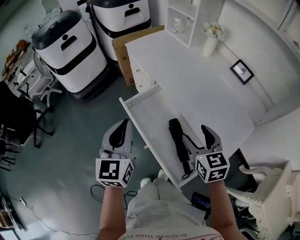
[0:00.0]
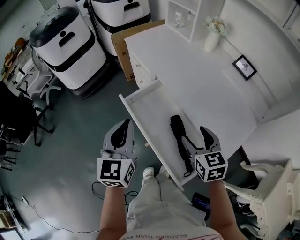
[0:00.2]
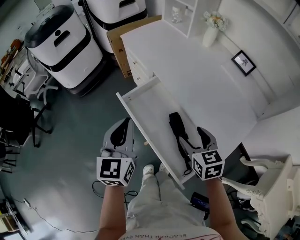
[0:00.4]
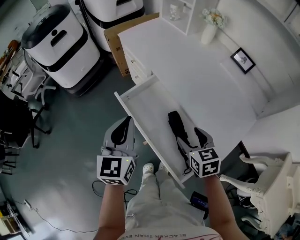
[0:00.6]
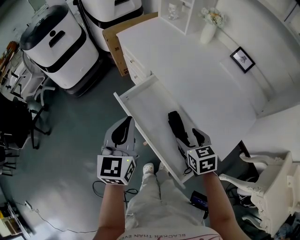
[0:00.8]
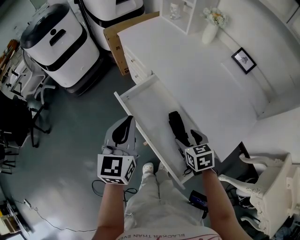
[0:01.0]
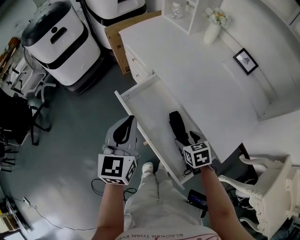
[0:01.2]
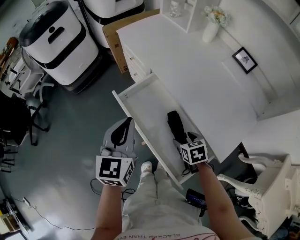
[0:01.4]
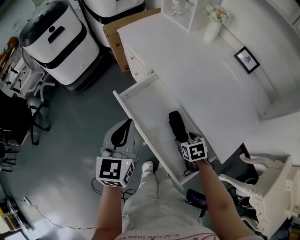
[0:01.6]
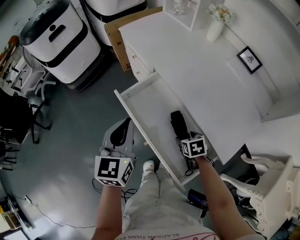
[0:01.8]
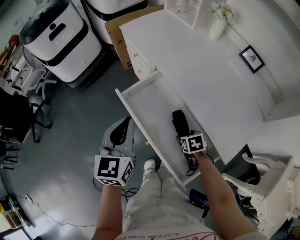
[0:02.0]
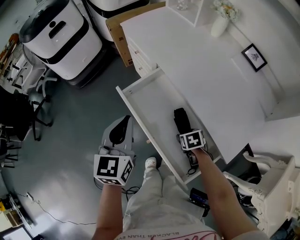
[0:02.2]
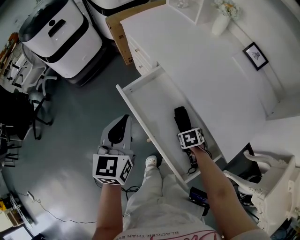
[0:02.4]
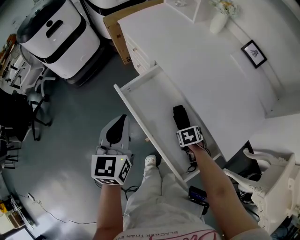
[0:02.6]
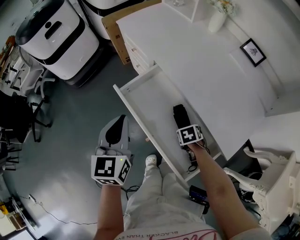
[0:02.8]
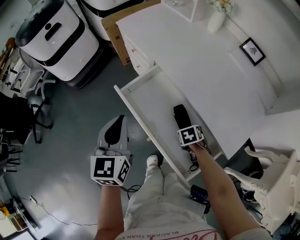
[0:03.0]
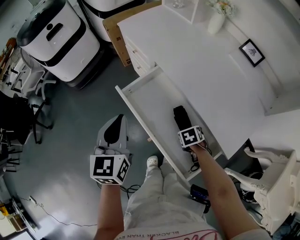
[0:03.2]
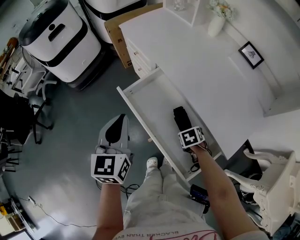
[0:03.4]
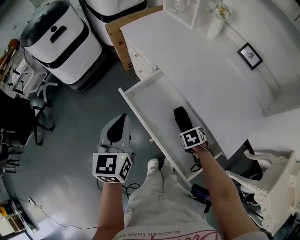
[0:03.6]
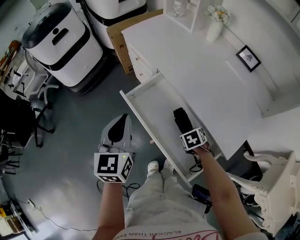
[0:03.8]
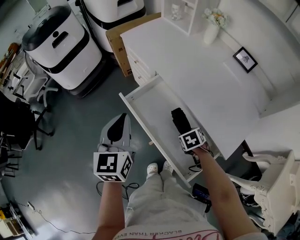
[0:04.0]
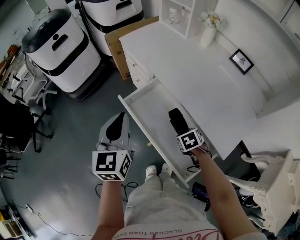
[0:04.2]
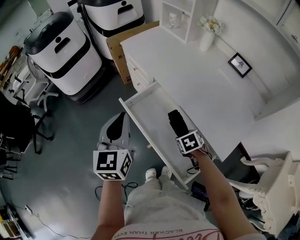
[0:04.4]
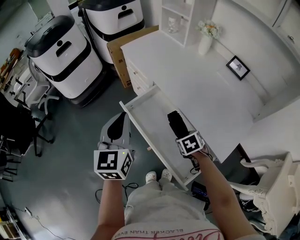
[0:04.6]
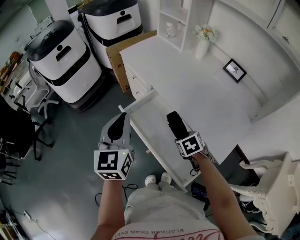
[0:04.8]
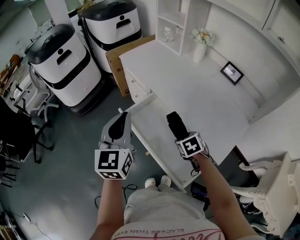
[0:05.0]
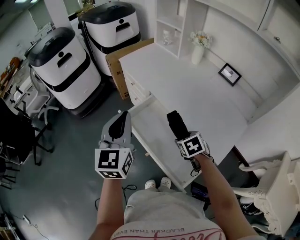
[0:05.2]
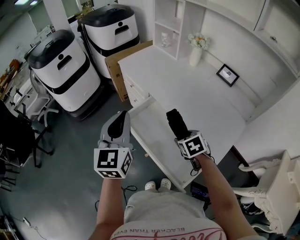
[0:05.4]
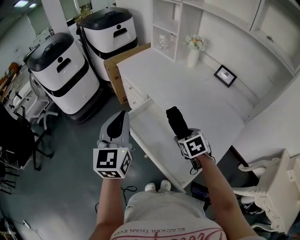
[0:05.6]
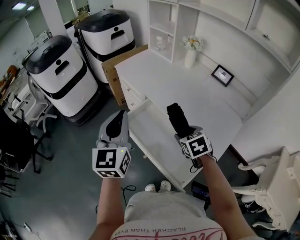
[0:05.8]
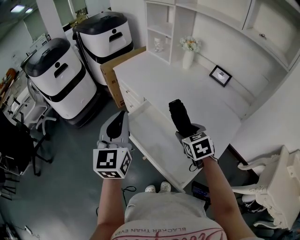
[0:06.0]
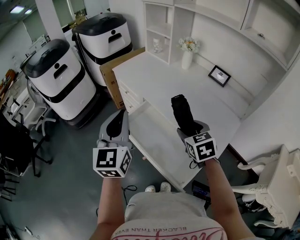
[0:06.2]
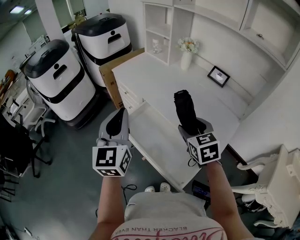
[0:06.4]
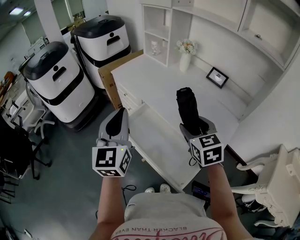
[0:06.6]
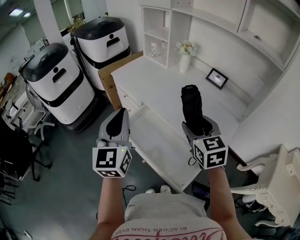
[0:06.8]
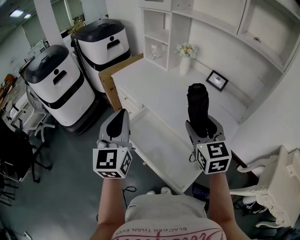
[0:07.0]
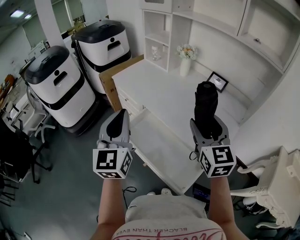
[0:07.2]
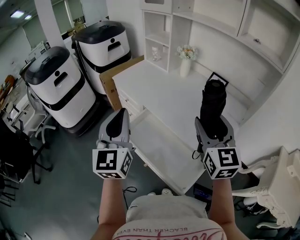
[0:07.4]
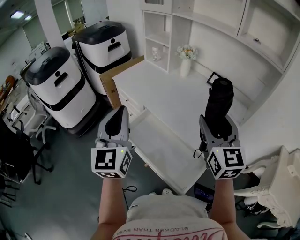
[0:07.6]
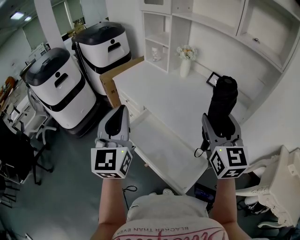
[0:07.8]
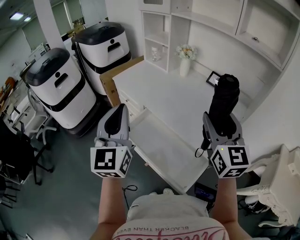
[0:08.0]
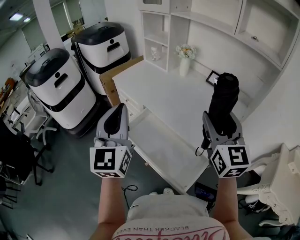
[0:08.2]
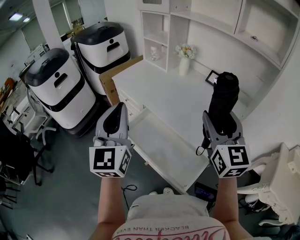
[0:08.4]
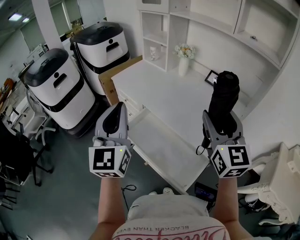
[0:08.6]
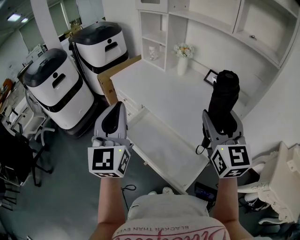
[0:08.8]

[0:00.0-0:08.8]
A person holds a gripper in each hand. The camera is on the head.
0:00.0 to 0:01.4: The right gripper shifts approximately 20 cm downward, and turns by roughly 30 degrees. The left gripper changes place by about 5 cm.
0:01.4 to 0:03.0: The right gripper goes some 10 cm downward.
0:03.0 to 0:04.4: The grippers both shift upward by approximately 10 cm.
0:04.4 to 0:05.8: The right gripper moves upward, about 15 cm, and rotates roughly 20 degrees; the left gripper shifts about 10 cm upward.
0:05.8 to 0:07.4: The right gripper moves upward, approximately 25 cm, and tilts its fingers about 40 degrees upward.
0:07.4 to 0:08.8: The grippers stay close to where they were, moving slightly.

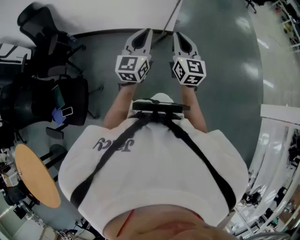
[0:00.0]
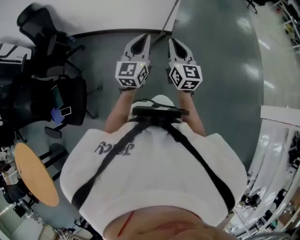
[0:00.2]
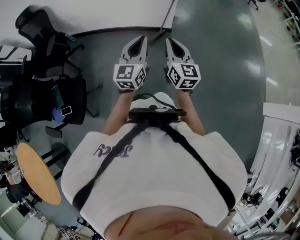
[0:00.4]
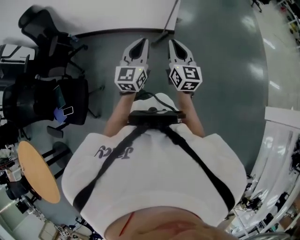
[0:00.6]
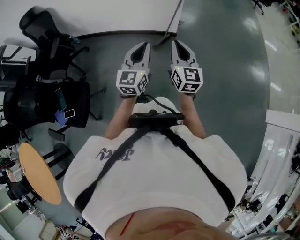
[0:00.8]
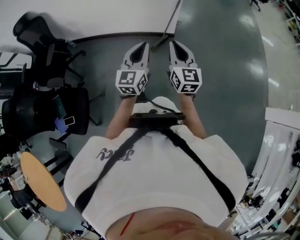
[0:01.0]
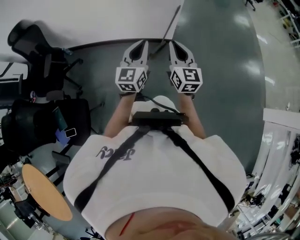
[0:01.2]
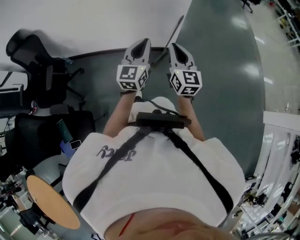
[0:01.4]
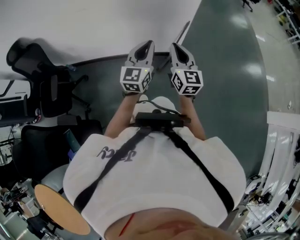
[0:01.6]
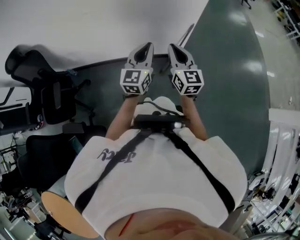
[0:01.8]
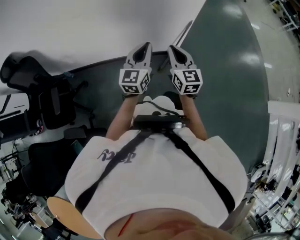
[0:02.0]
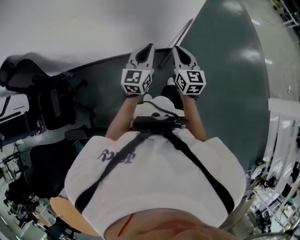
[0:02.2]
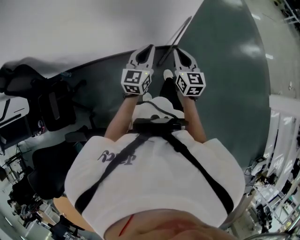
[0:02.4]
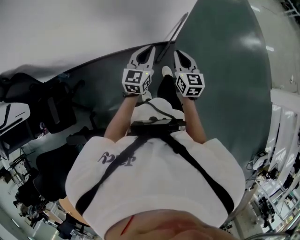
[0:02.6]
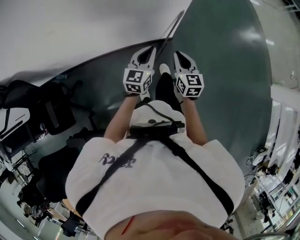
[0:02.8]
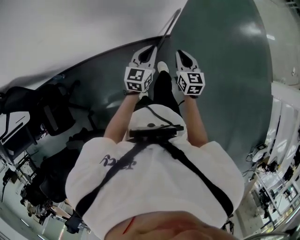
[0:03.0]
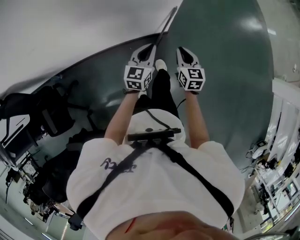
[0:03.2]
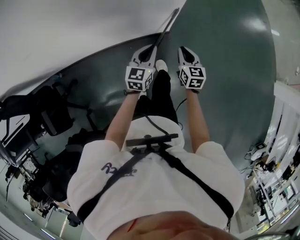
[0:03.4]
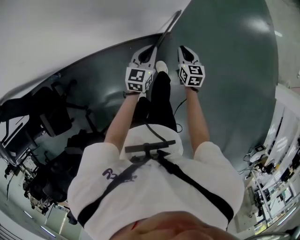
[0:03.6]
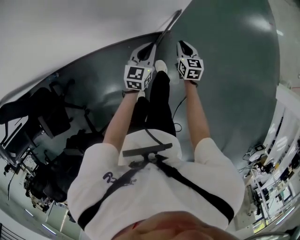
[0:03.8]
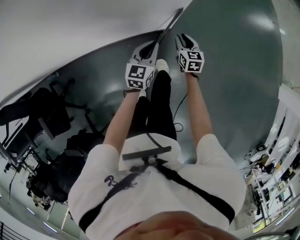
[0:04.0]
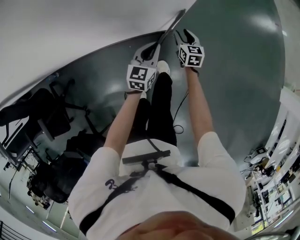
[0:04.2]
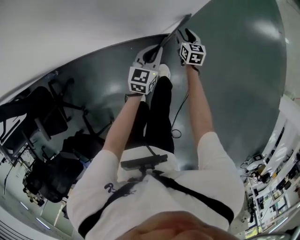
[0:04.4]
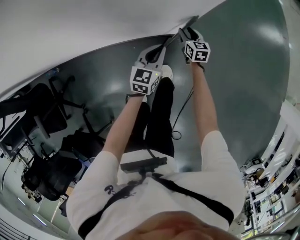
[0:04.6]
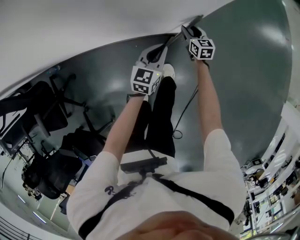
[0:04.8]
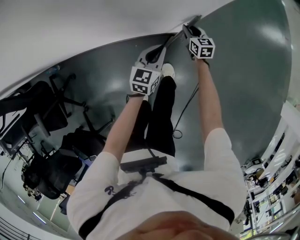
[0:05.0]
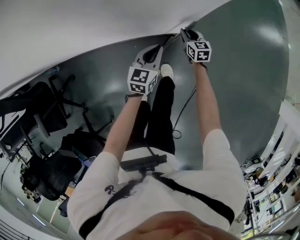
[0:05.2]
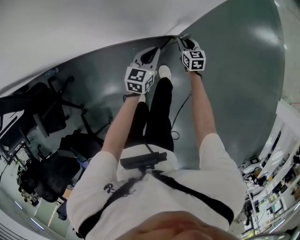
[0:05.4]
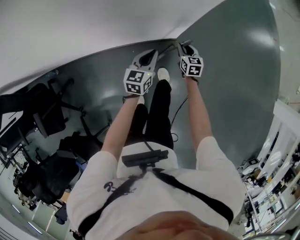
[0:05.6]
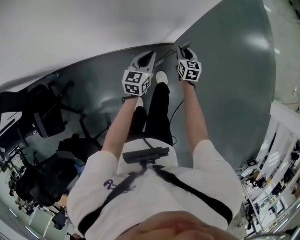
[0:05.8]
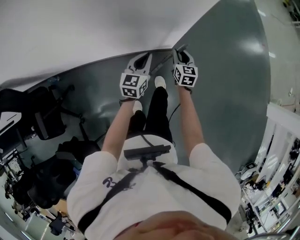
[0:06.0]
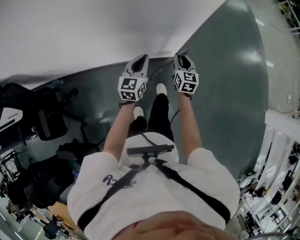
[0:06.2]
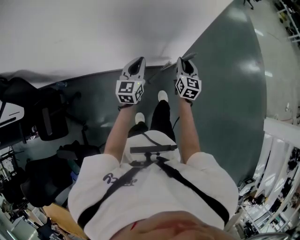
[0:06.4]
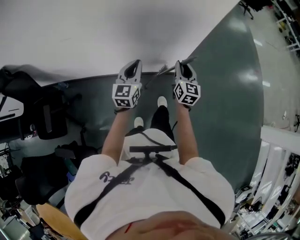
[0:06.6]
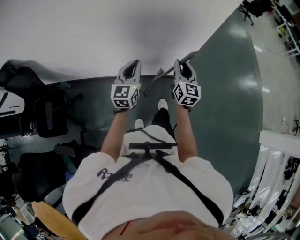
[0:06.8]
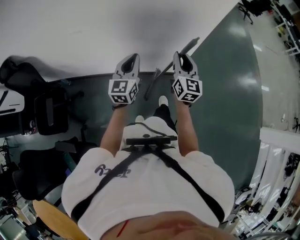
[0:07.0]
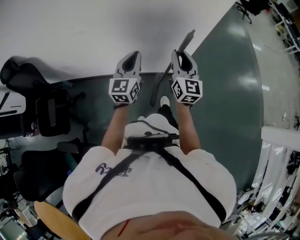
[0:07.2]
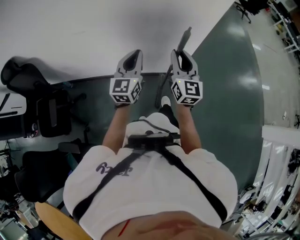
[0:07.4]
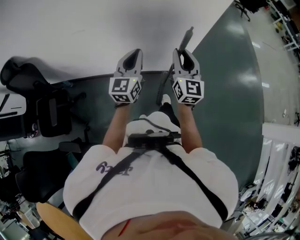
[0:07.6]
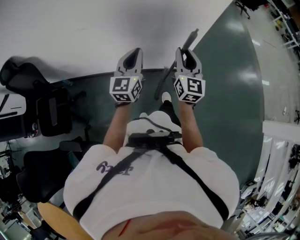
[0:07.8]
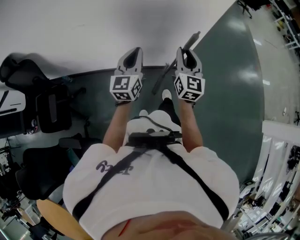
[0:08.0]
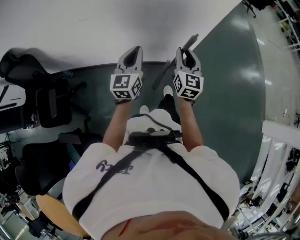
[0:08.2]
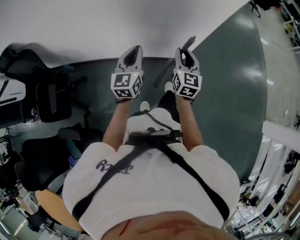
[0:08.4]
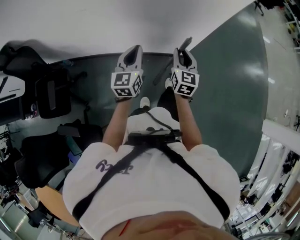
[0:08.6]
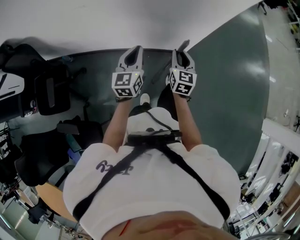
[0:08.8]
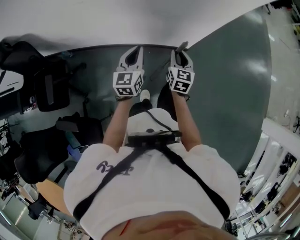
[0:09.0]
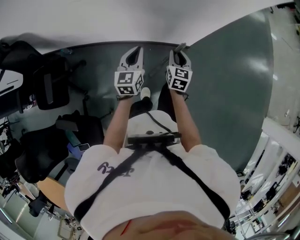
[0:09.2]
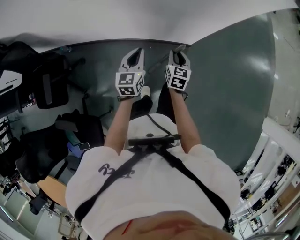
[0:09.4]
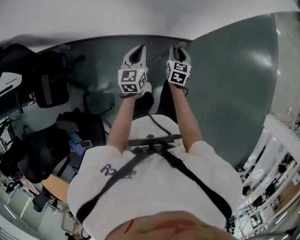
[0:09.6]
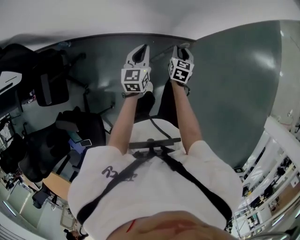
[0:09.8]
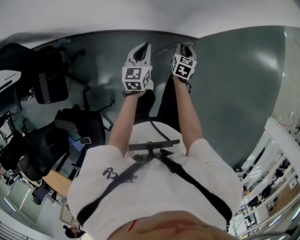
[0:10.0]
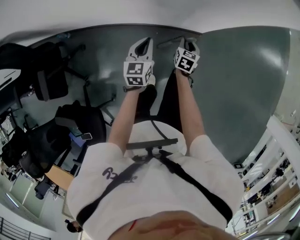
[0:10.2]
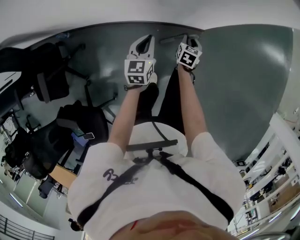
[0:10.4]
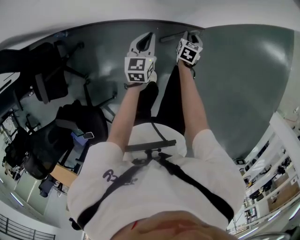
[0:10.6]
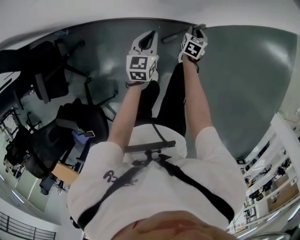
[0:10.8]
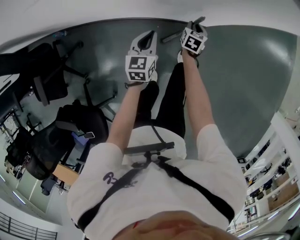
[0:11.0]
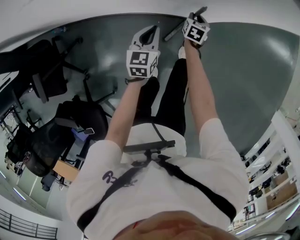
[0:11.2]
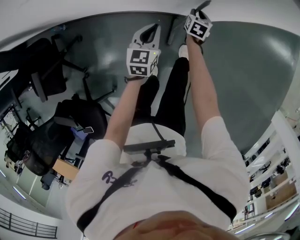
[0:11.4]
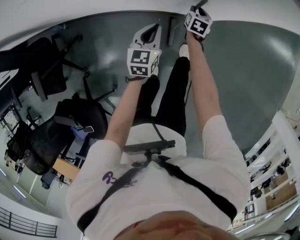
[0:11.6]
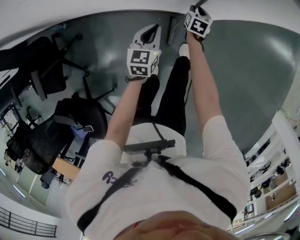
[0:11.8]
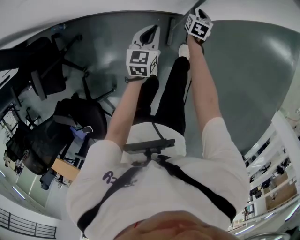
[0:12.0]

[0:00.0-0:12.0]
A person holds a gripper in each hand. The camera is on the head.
0:00.0 to 0:01.6: The grippers both shift forward by approximately 25 cm.
0:01.6 to 0:03.0: The two grippers go about 30 cm downward, forward and to the right. The right gripper swivels approximately 30 degrees; the left gripper turns by approximately 30 degrees.
0:03.0 to 0:04.4: The right gripper goes some 40 cm downward and forward, and opens. The left gripper goes roughly 25 cm downward and forward.
0:04.4 to 0:06.0: The right gripper is displaced upward and backward by some 20 cm. Meanwhile the left gripper travels upward, to the left and backward by some 15 cm.
0:06.0 to 0:07.6: The right gripper moves upward, about 40 cm, and points its fingers approximately 30 degrees further upward, while the left gripper goes roughly 35 cm upward, to the left and backward, and turns by roughly 30 degrees.
0:07.6 to 0:09.0: The left gripper is displaced downward by approximately 15 cm. Meanwhile the right gripper goes some 25 cm downward, and turns by approximately 30 degrees.
0:09.0 to 0:10.4: The right gripper travels downward by about 25 cm, and changes its angle by approximately 30 degrees. Meanwhile the left gripper travels downward and forward by roughly 20 cm.
0:10.4 to 0:12.0: The right gripper heads forward, covering some 10 cm, while the left gripper heads downward, covering approximately 5 cm.

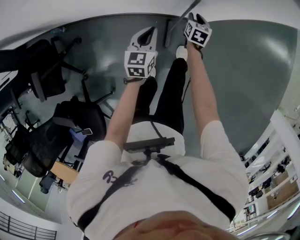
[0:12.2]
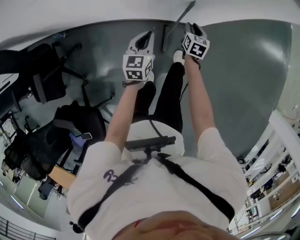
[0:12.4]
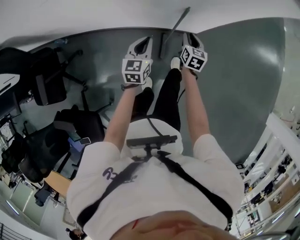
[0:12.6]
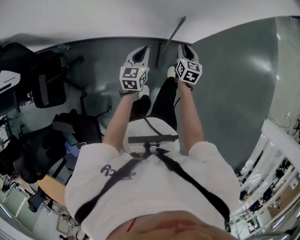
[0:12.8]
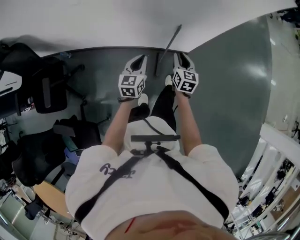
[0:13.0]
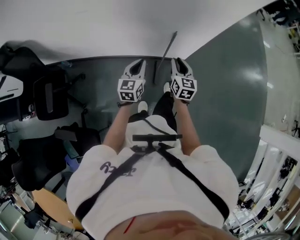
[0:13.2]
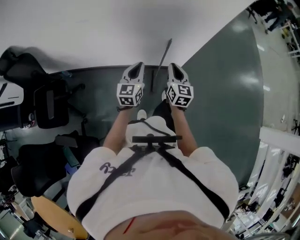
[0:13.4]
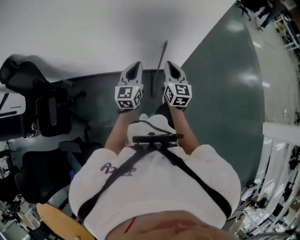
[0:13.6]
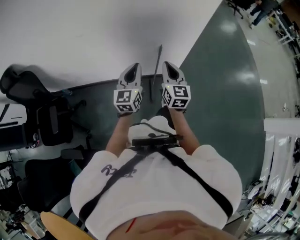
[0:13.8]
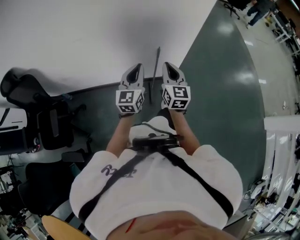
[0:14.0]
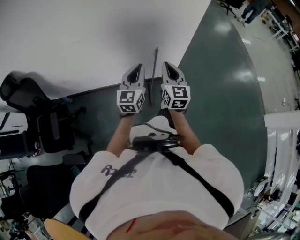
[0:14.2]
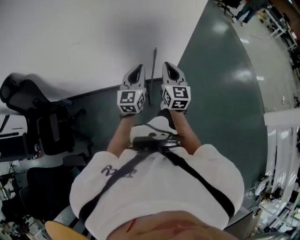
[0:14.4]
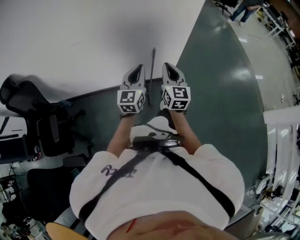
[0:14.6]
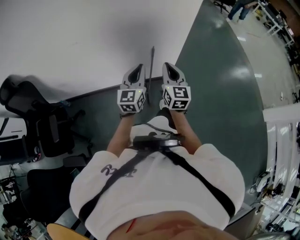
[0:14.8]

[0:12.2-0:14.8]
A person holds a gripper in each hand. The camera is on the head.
0:12.2 to 0:13.4: The right gripper shifts approximately 40 cm upward and backward, and turns by roughly 30 degrees, while the left gripper heads upward and backward, covering some 25 cm.
0:13.4 to 0:14.8: The left gripper shifts approximately 15 cm upward, to the right and backward; the right gripper heads upward and backward, covering some 15 cm.
